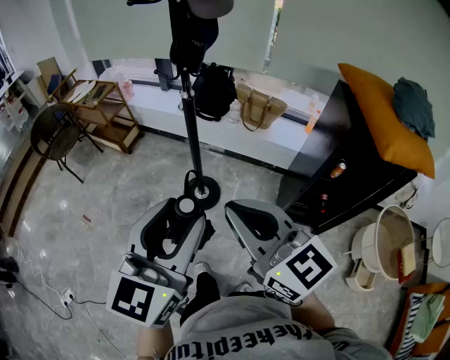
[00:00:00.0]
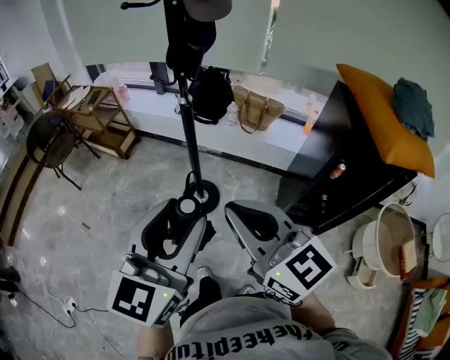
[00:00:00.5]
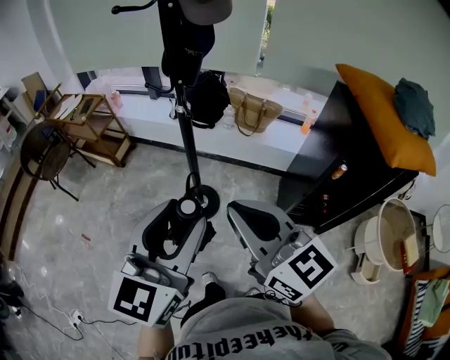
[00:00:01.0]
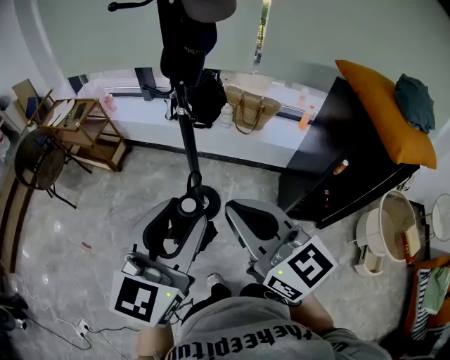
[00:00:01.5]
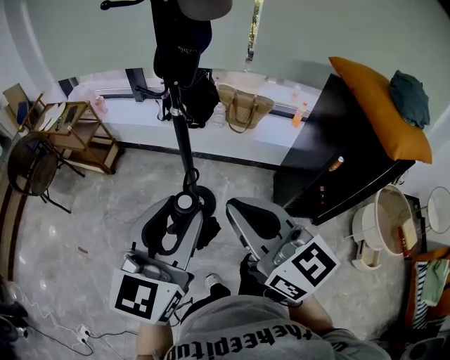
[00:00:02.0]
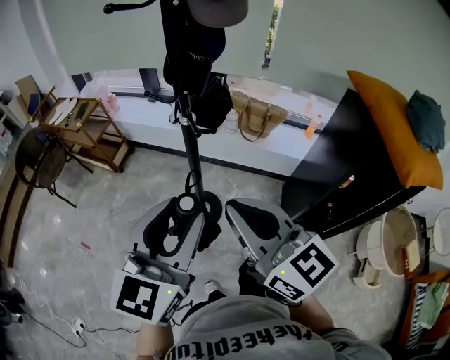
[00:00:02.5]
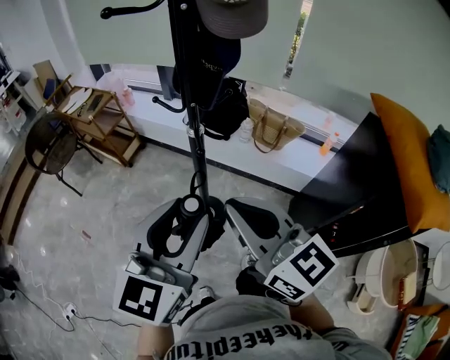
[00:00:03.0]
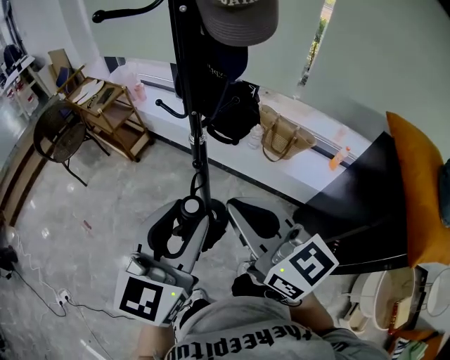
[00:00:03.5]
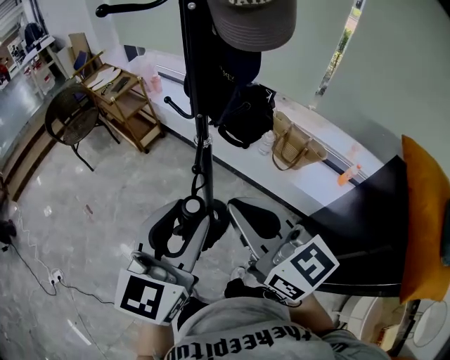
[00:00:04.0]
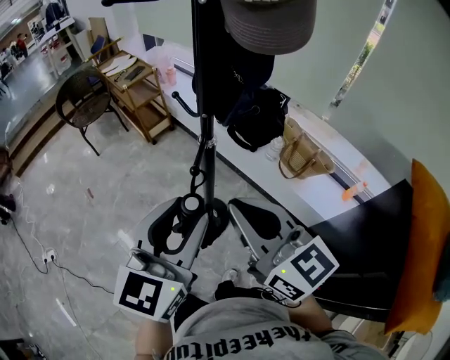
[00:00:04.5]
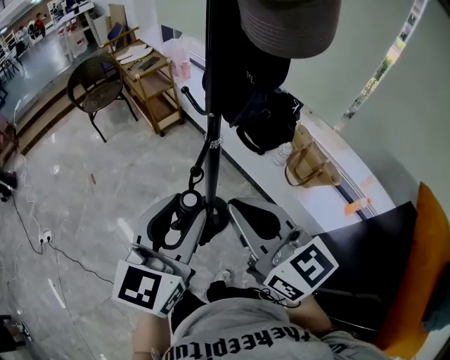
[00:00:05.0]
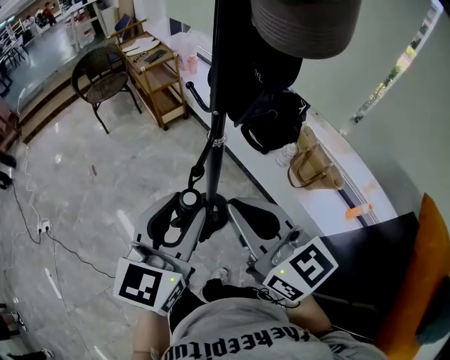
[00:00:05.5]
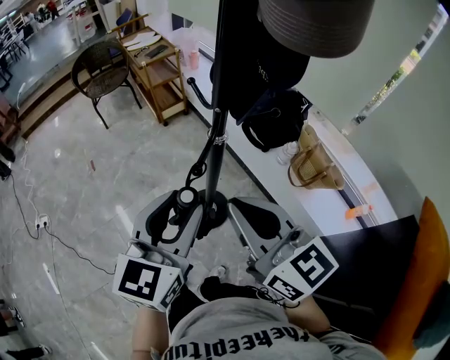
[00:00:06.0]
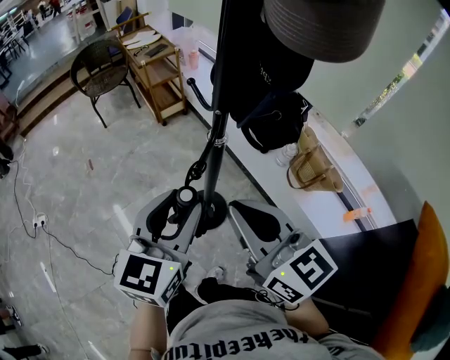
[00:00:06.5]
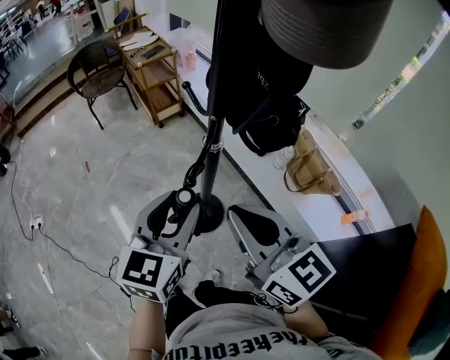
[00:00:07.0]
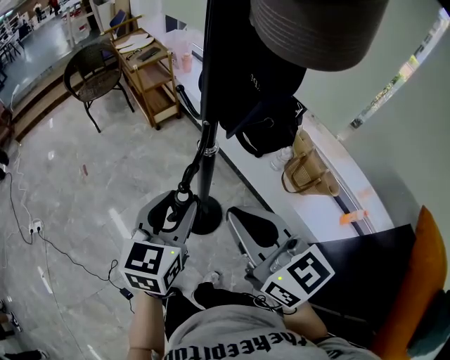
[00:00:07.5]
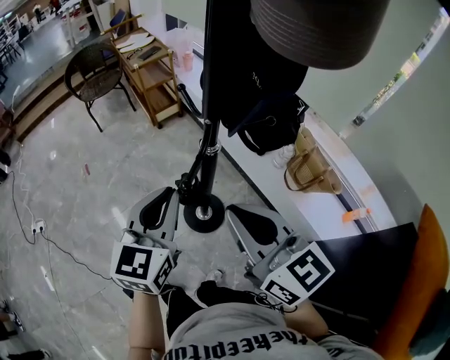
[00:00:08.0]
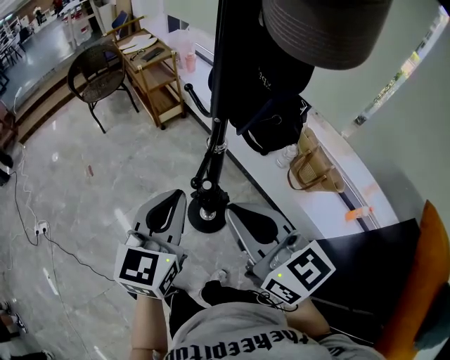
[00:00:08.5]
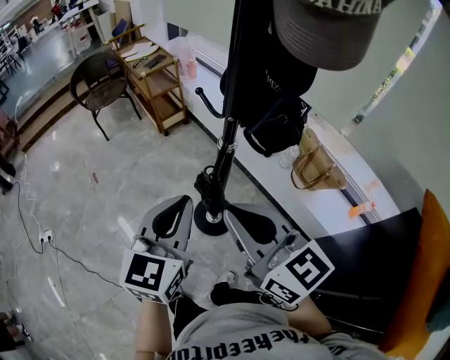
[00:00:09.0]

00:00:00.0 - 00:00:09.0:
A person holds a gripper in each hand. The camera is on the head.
00:00:00.0 - 00:00:02.0: Both grippers travel together forward, roughly 10 cm.
00:00:02.0 - 00:00:04.5: The right gripper ends up approximately 20 cm from where it was, and swivels some 30 degrees; the left gripper changes place by about 15 cm, and turns by approximately 30 degrees.
00:00:04.5 - 00:00:07.0: The right gripper changes place by about 5 cm; the left gripper shifts some 10 cm downward and forward.
00:00:07.0 - 00:00:09.0: The right gripper moves to the left, about 5 cm; the left gripper closes.

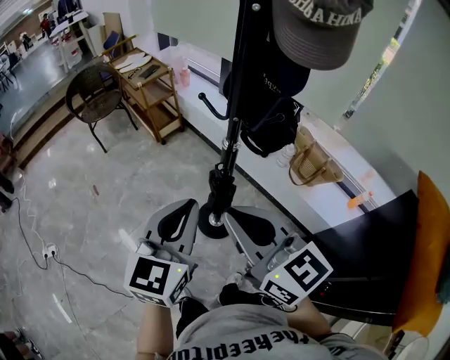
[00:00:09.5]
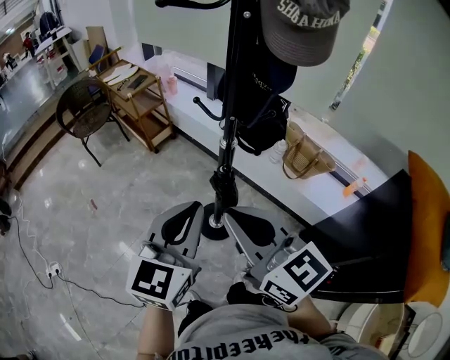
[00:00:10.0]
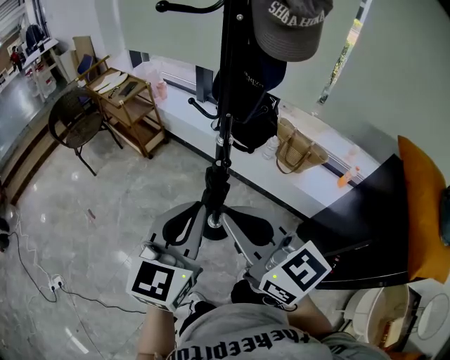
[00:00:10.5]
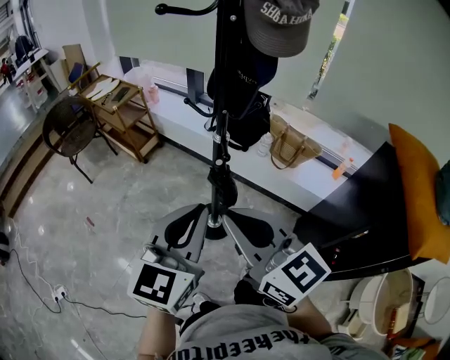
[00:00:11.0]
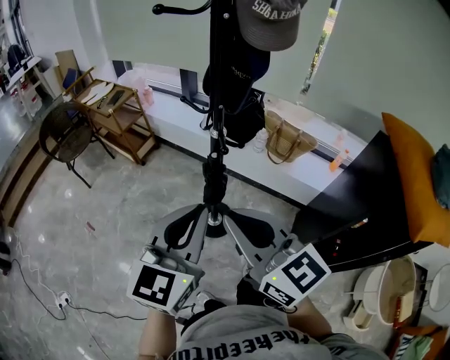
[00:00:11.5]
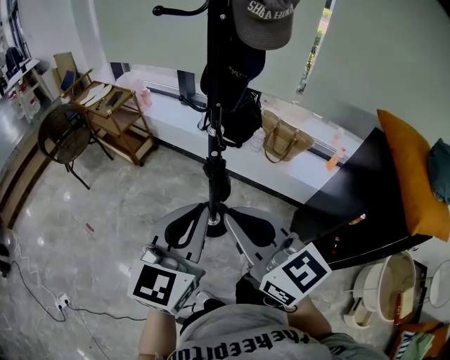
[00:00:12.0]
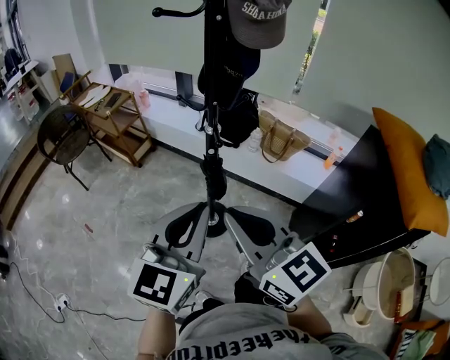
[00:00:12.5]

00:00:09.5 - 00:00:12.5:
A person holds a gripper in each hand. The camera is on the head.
00:00:09.5 - 00:00:11.0: The grippers both shift backward by about 5 cm.
00:00:11.0 - 00:00:12.5: The grippers stay close to where they were, moving slightly.

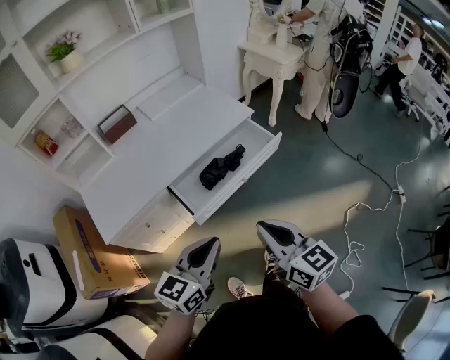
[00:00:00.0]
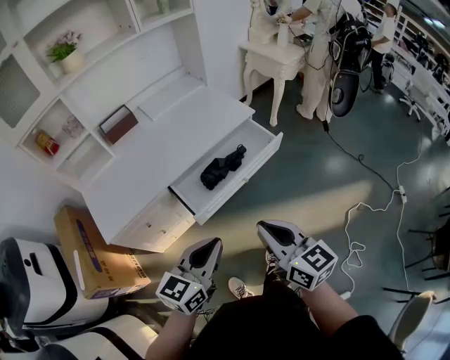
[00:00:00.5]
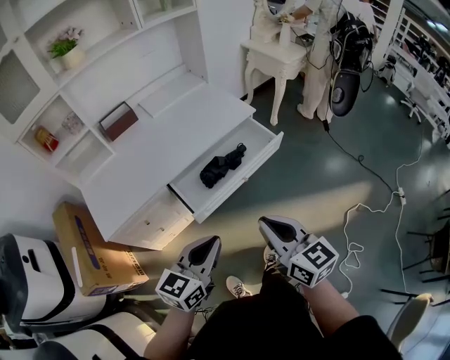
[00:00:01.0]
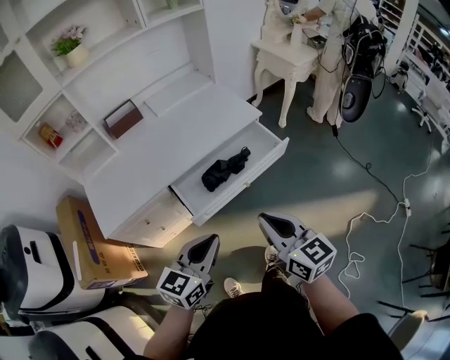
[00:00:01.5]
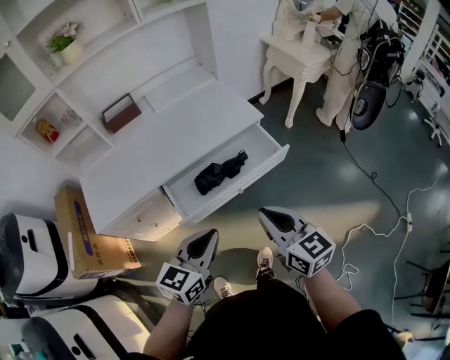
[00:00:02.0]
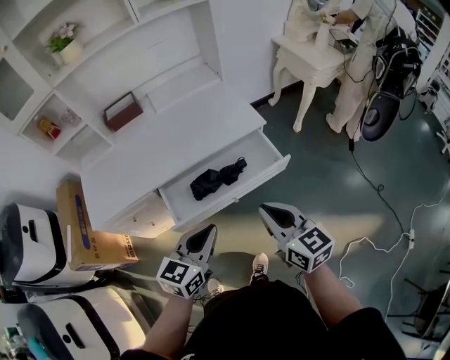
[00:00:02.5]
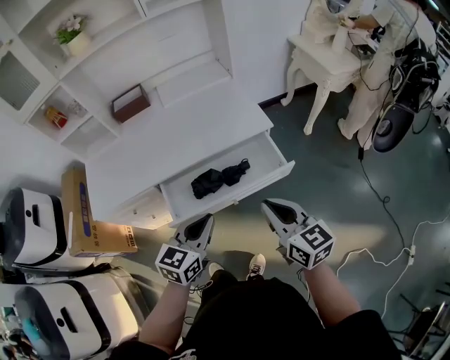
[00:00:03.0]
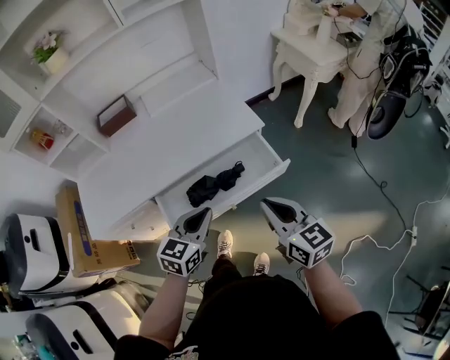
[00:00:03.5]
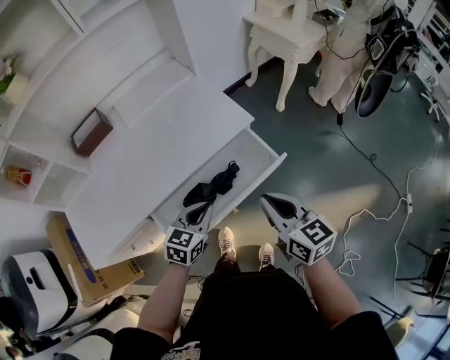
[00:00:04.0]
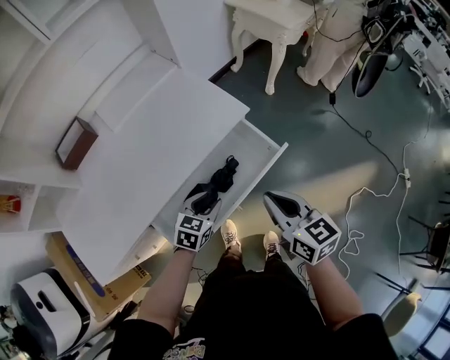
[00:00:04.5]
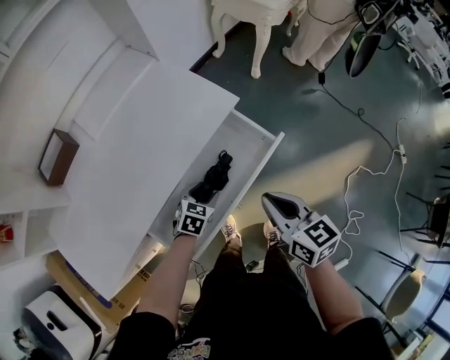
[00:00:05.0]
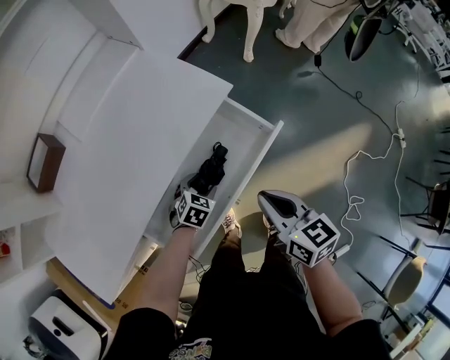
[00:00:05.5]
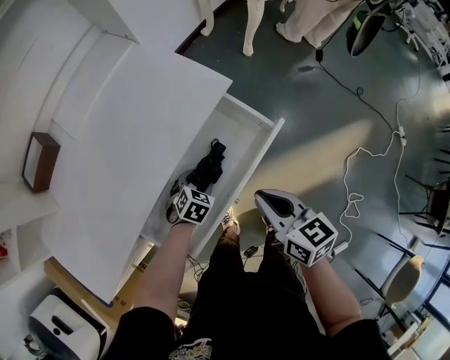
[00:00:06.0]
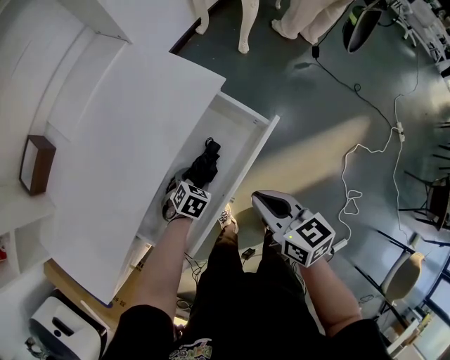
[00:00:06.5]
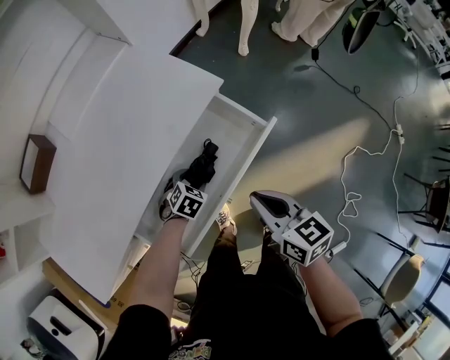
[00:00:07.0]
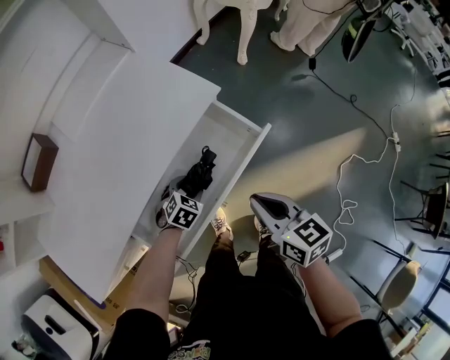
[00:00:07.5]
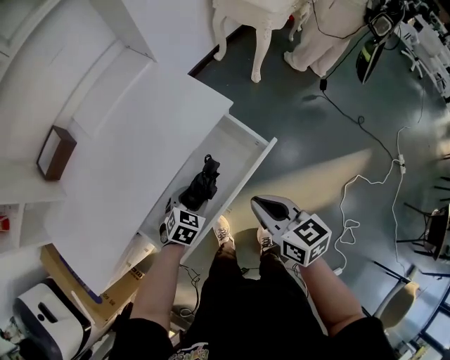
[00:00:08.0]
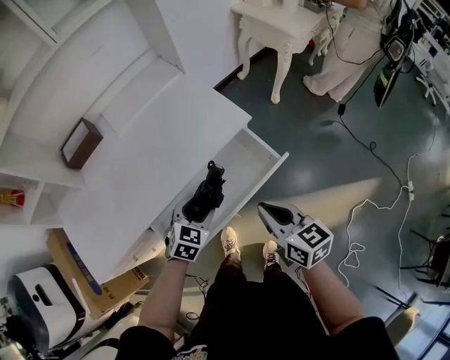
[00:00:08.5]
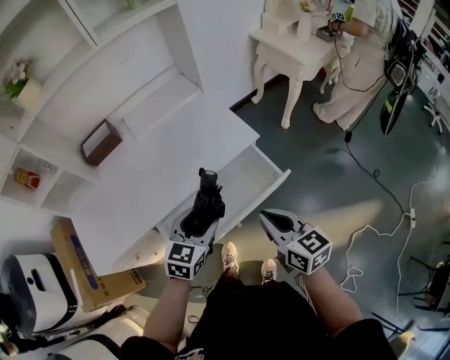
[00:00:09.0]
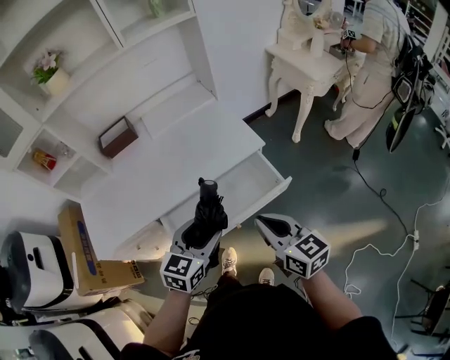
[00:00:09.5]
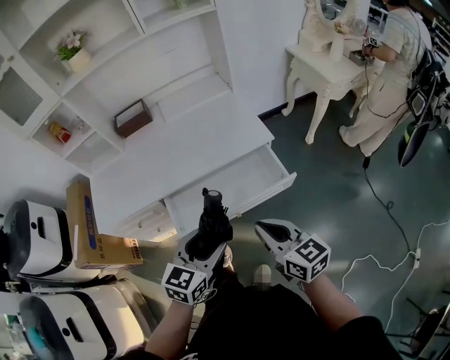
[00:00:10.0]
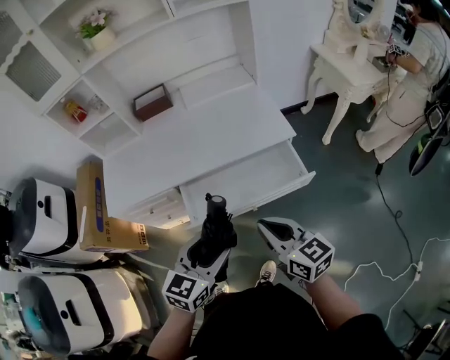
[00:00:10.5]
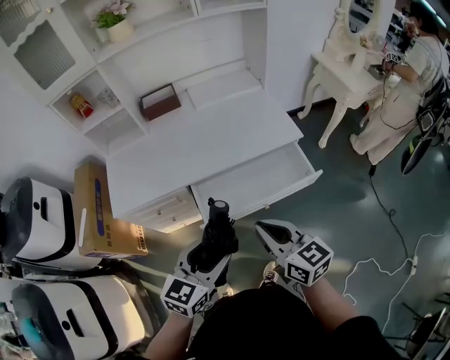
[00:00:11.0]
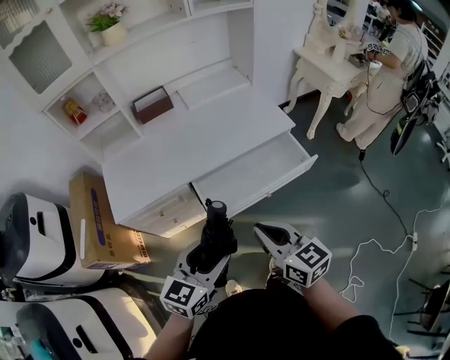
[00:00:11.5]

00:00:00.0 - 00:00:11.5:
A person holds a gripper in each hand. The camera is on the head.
00:00:00.0 - 00:00:02.0: Both grippers move forward and to the right, roughly 15 cm.
00:00:02.0 - 00:00:04.0: The left gripper moves forward and downward, roughly 25 cm, and changes its angle by some 20 degrees; the right gripper shifts about 15 cm forward.
00:00:04.0 - 00:00:06.0: The right gripper shifts some 10 cm downward, while the left gripper goes some 25 cm downward, angles its fingers downward, by approximately 30 degrees, and opens its fingers.
00:00:06.0 - 00:00:07.5: The grippers move only a little.
00:00:07.5 - 00:00:09.5: The right gripper goes approximately 15 cm upward, and changes its angle by roughly 30 degrees. Meanwhile the left gripper heads upward and backward, covering approximately 35 cm, and tips its fingers upward by about 40 degrees.
00:00:09.5 - 00:00:11.5: The two grippers go some 25 cm to the left and backward.

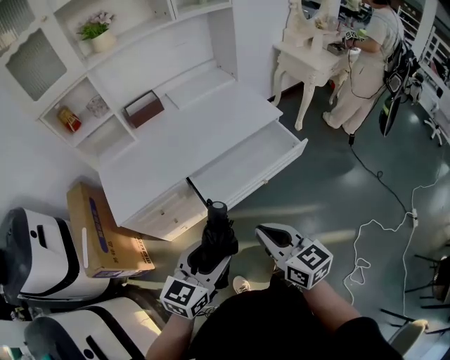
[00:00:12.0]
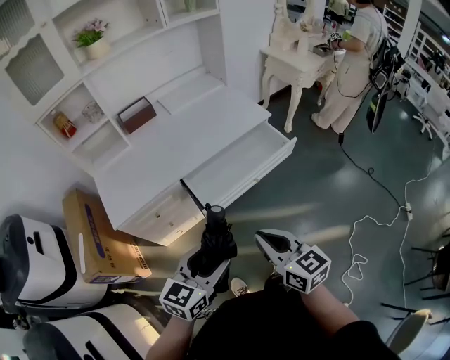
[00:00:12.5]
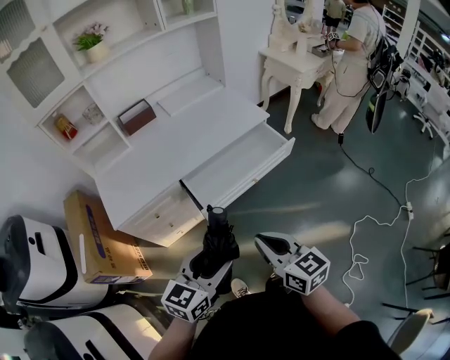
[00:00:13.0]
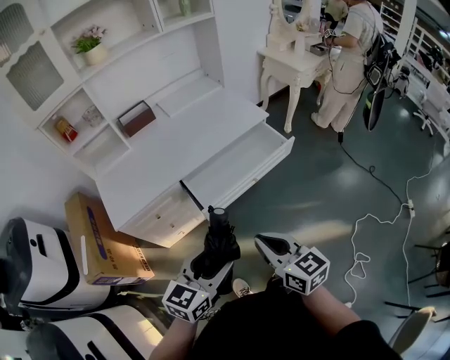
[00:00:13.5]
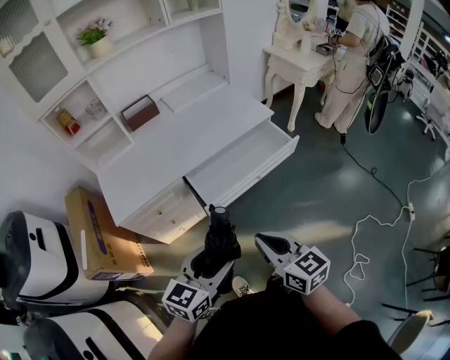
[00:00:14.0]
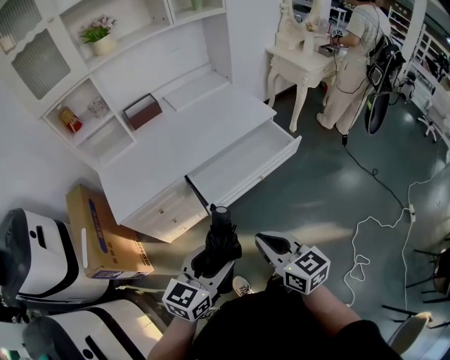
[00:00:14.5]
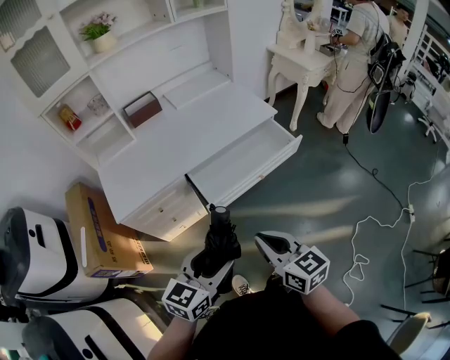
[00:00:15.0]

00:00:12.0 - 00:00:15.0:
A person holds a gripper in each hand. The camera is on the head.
00:00:12.0 - 00:00:13.5: The right gripper travels backward by about 5 cm. Meanwhile the left gripper changes place by roughly 5 cm.
00:00:13.5 - 00:00:15.0: The grippers move only a little.
